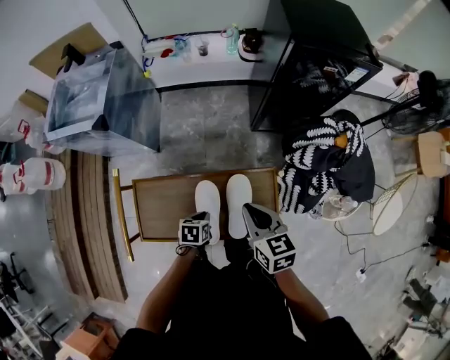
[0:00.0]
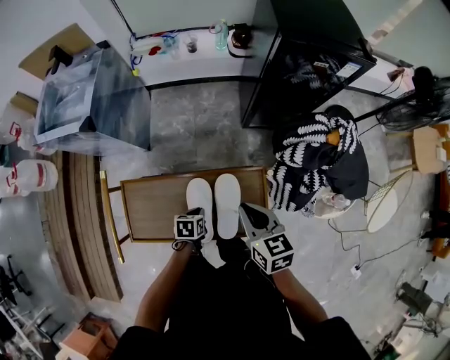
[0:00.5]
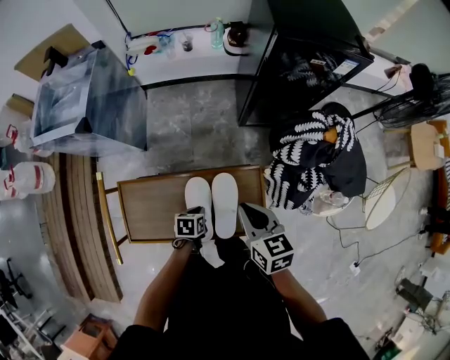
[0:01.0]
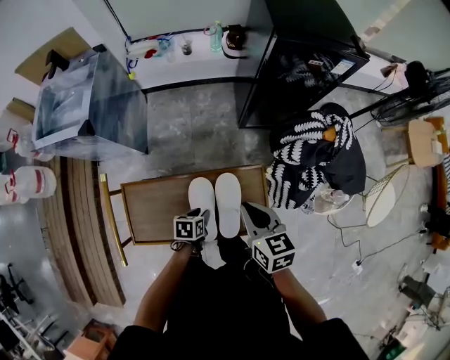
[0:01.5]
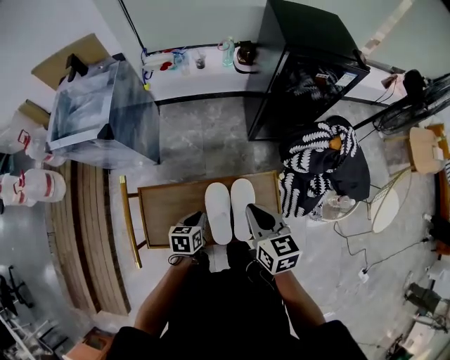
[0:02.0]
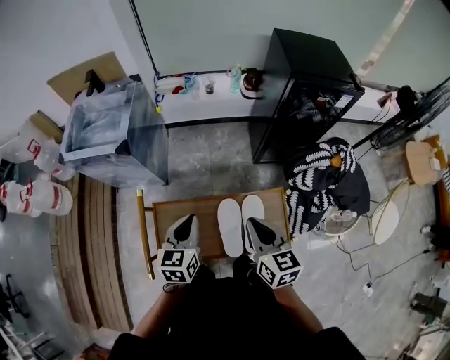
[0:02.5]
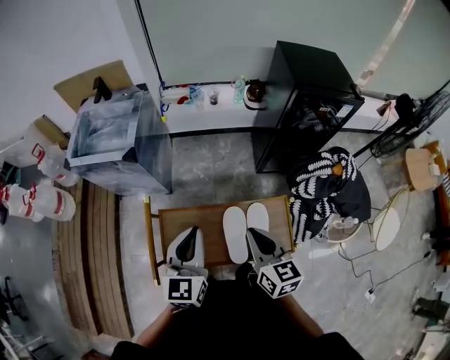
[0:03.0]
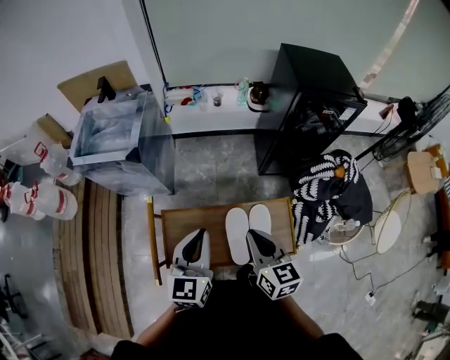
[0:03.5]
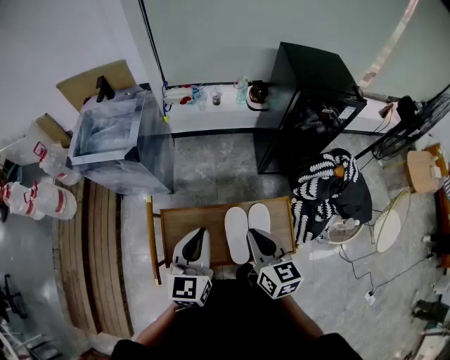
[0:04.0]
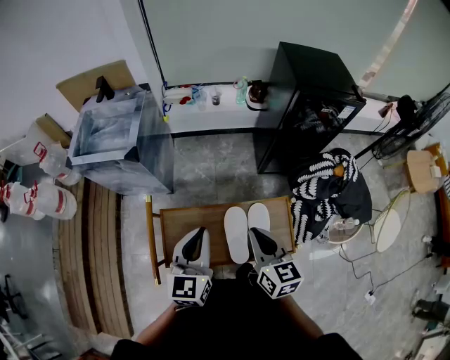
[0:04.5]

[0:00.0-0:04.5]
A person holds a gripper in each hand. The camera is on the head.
0:00.0 to 0:02.0: The left gripper is displaced upward by about 5 cm, and opens, then closes once more.
0:02.0 to 0:04.5: The left gripper heads upward, covering about 30 cm, and tilts its fingers about 40 degrees upward, while the right gripper travels to the left and upward by roughly 10 cm.

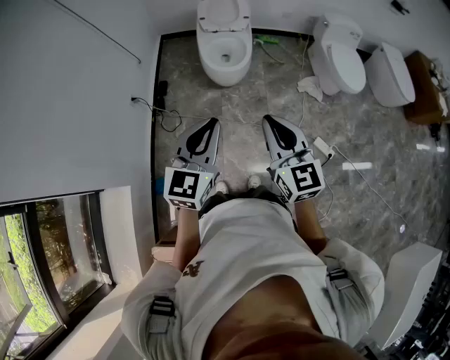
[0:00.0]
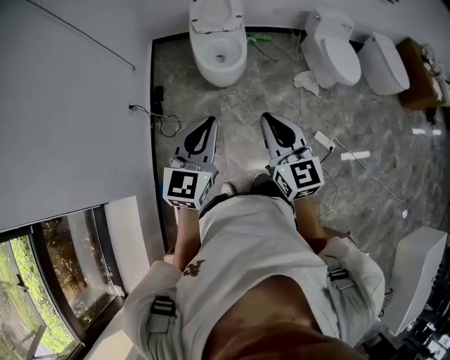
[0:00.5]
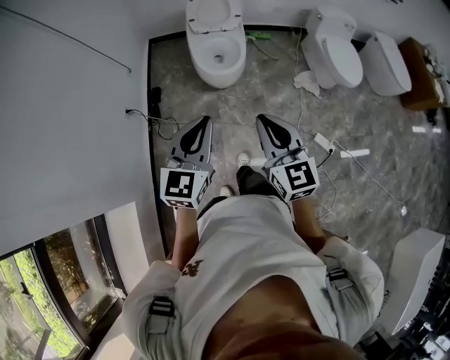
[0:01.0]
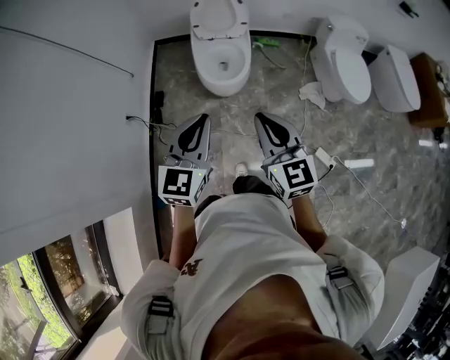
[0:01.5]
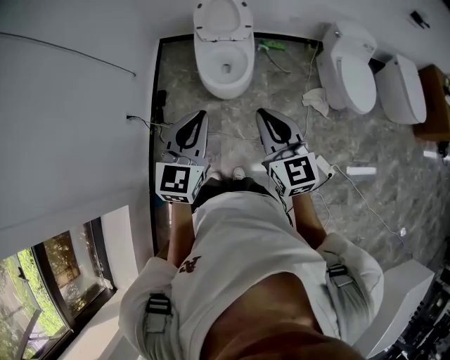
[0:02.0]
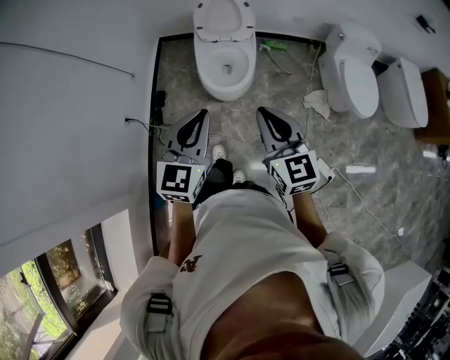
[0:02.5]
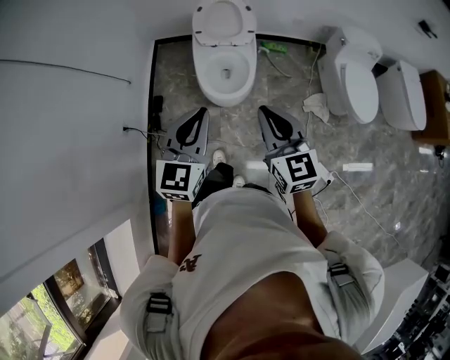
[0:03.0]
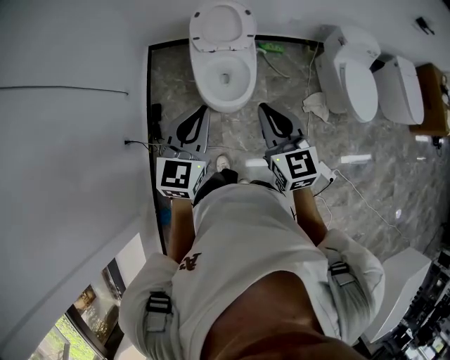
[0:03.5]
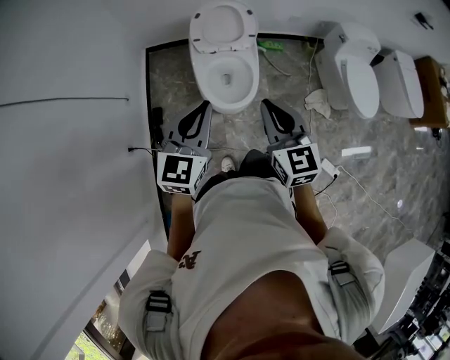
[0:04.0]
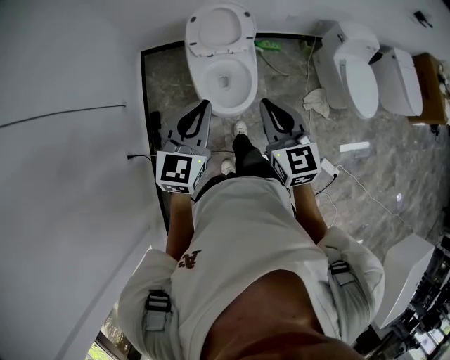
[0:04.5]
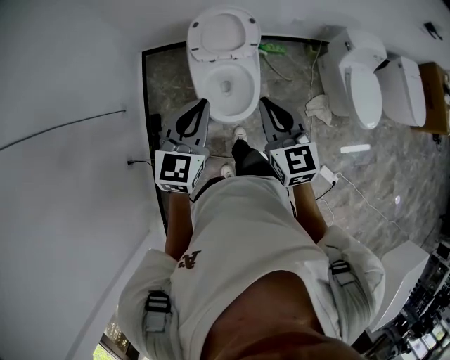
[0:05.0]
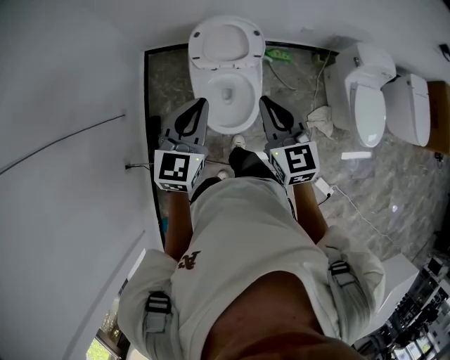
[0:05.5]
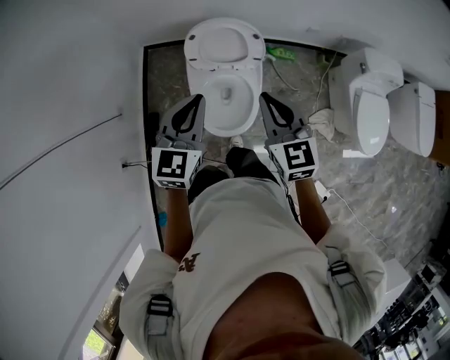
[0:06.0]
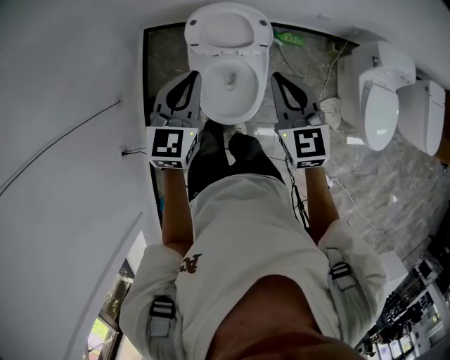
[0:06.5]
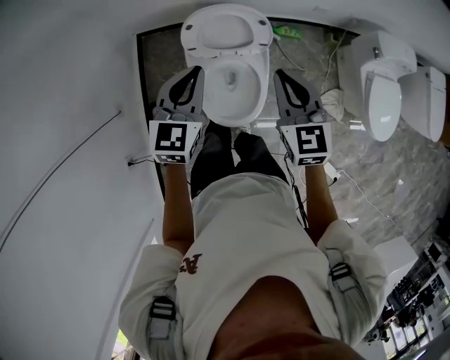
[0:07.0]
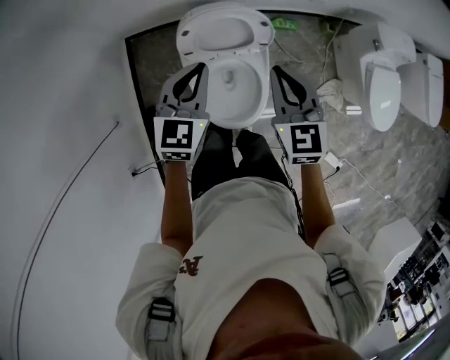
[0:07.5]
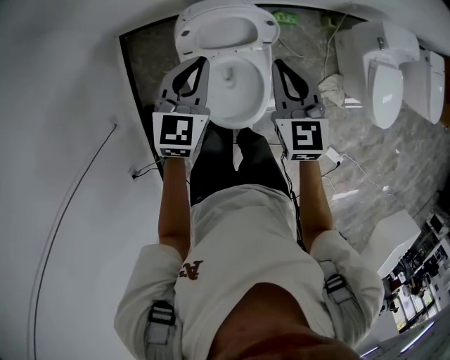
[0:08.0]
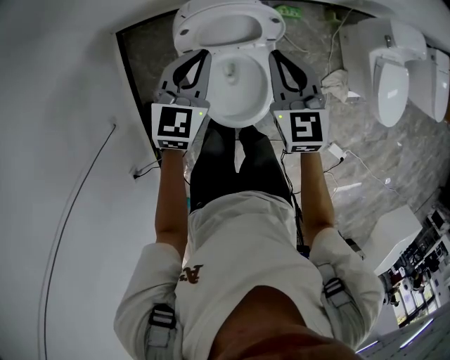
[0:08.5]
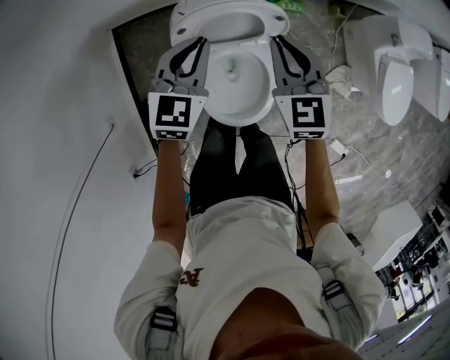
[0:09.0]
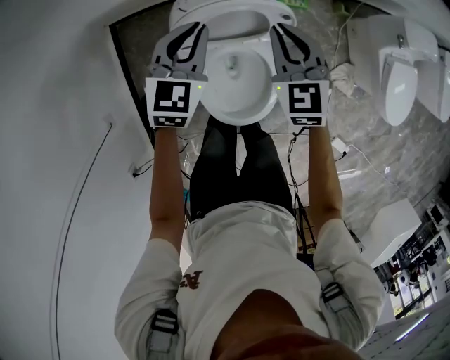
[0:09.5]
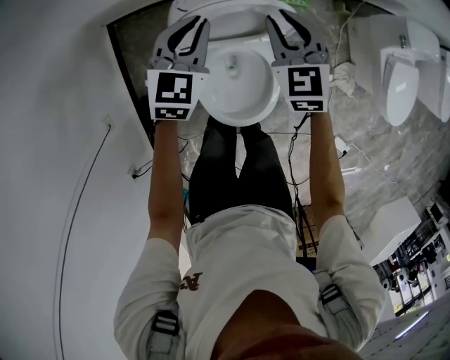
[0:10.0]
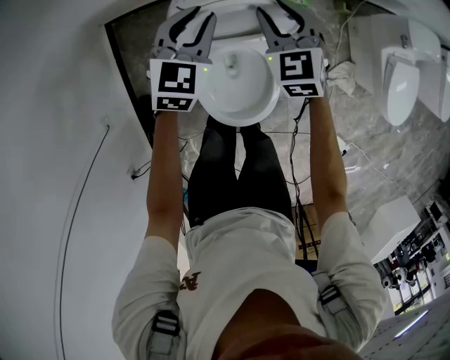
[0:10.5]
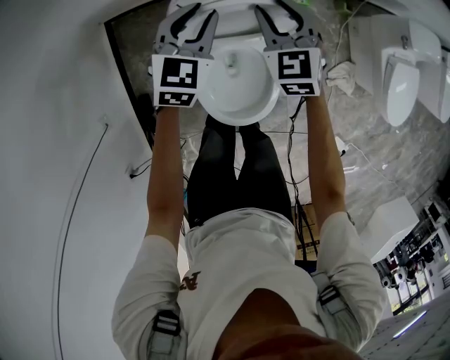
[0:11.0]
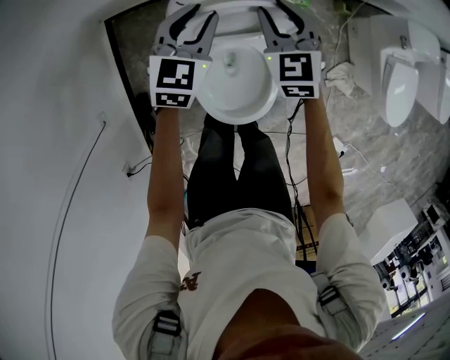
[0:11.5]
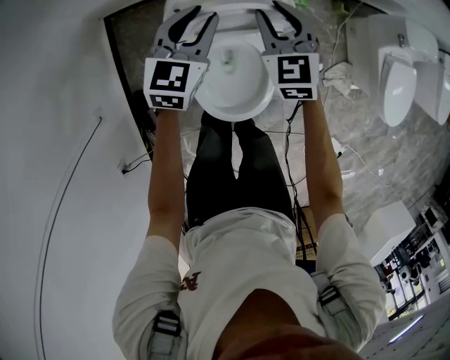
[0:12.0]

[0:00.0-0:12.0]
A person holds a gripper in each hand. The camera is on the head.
0:00.0 to 0:02.0: Both grippers move forward, approximately 25 cm.
0:02.0 to 0:04.0: Both grippers travel together forward and to the left, approximately 30 cm.
0:04.0 to 0:06.0: Both grippers move forward, about 30 cm.
0:06.0 to 0:08.0: The grippers both shift forward and downward by some 25 cm.
0:08.0 to 0:10.0: The two grippers go about 20 cm forward and downward.
0:10.0 to 0:12.0: The left gripper opens up.

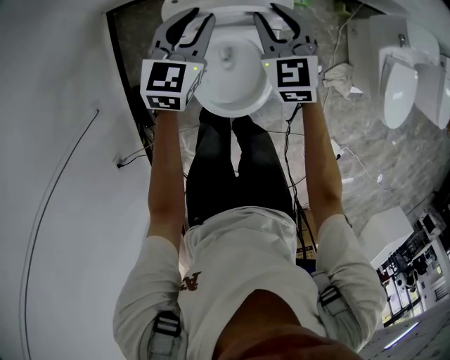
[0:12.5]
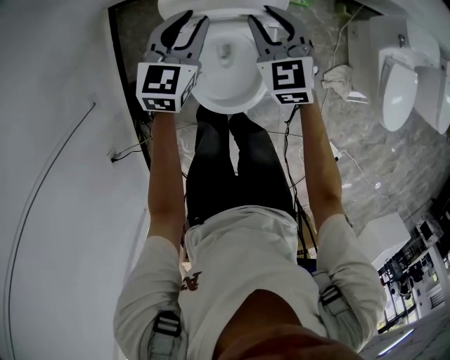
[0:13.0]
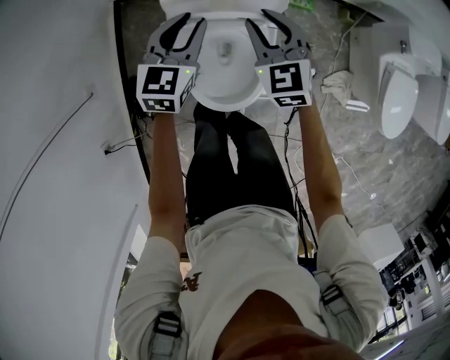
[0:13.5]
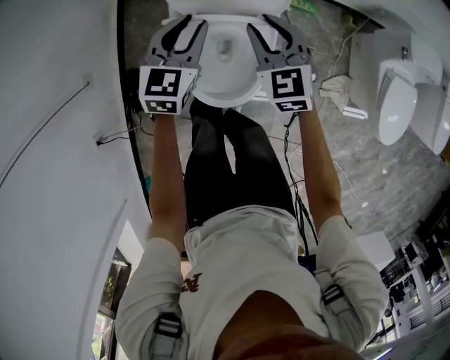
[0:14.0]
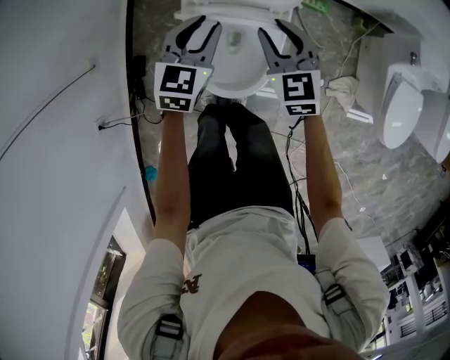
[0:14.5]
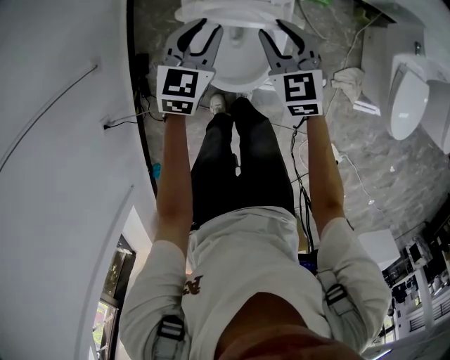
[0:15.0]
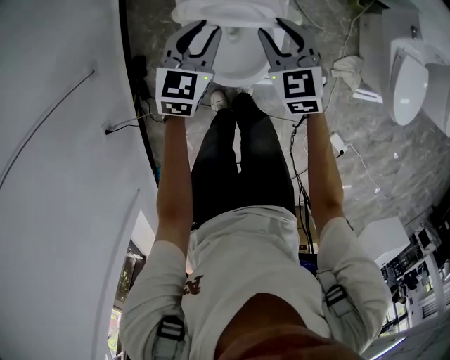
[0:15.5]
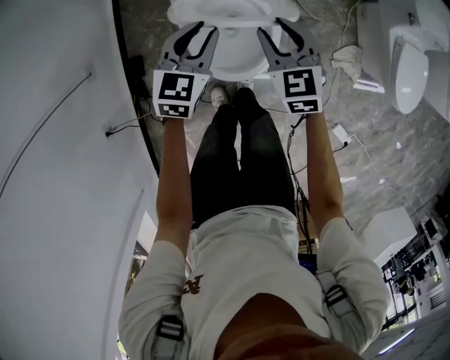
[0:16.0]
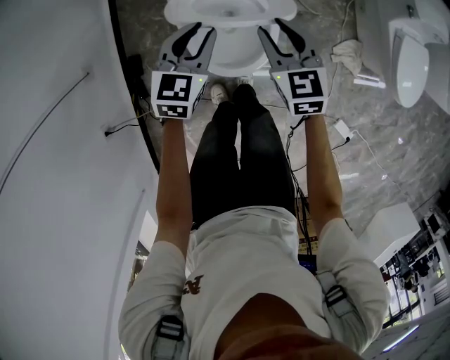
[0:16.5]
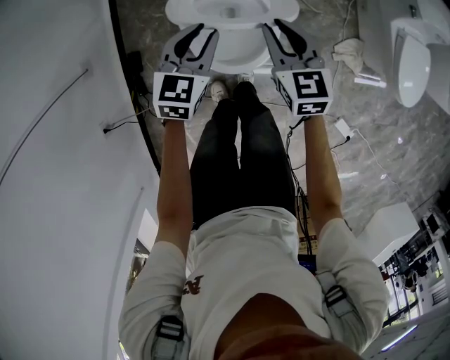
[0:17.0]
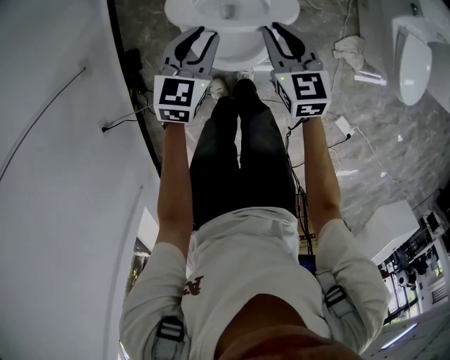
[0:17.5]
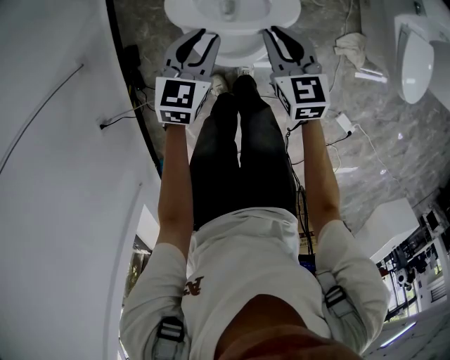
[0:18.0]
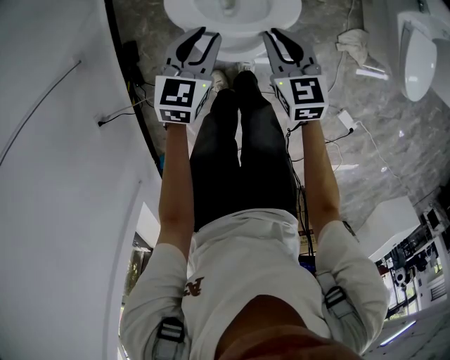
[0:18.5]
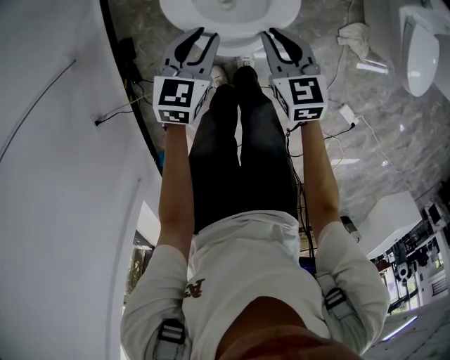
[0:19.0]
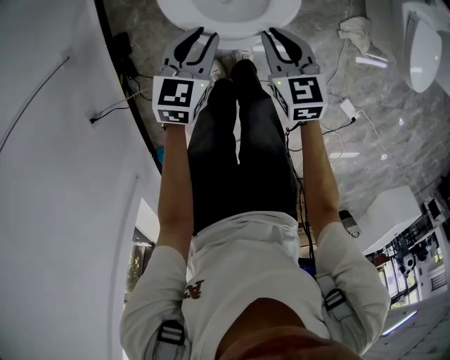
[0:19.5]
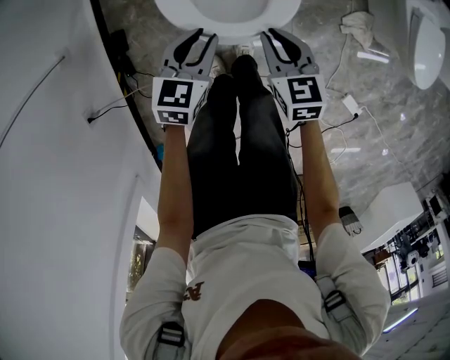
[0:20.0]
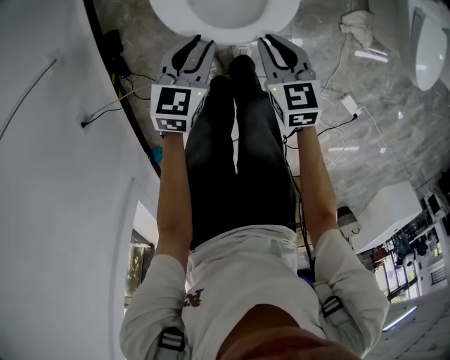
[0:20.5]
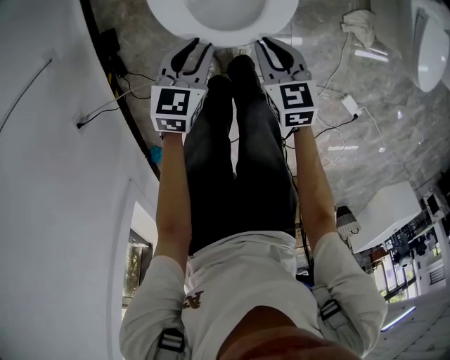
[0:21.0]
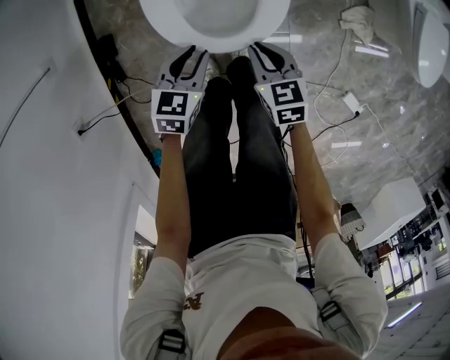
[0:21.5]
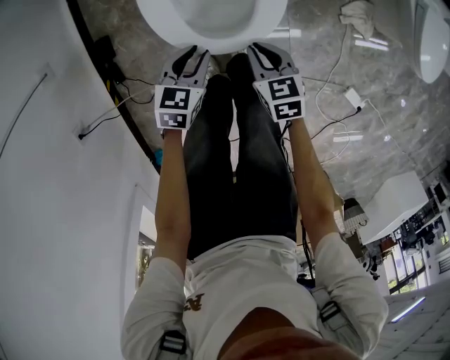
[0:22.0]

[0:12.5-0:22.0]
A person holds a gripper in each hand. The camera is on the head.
0:12.5 to 0:14.5: Both grippers move backward, about 15 cm.
0:14.5 to 0:16.5: Both grippers travel together backward, approximately 10 cm.
0:16.5 to 0:18.0: The right gripper moves about 5 cm, and closes; the left gripper goes about 5 cm backward.
0:18.0 to 0:20.0: Both grippers move downward and backward, about 10 cm.
0:20.0 to 0:22.0: The grippers both shift downward by roughly 15 cm.

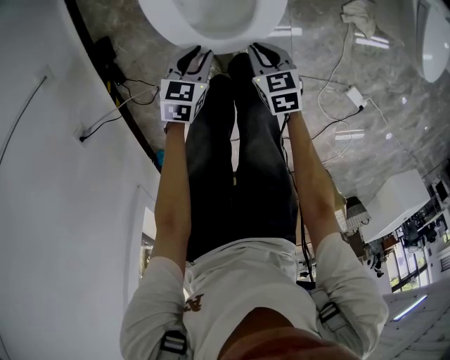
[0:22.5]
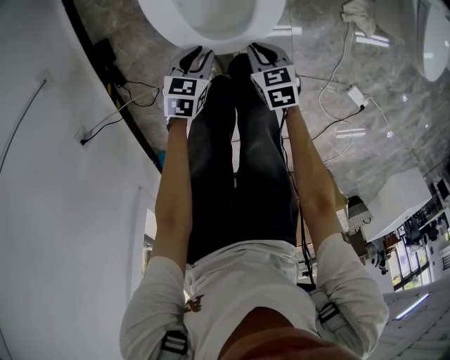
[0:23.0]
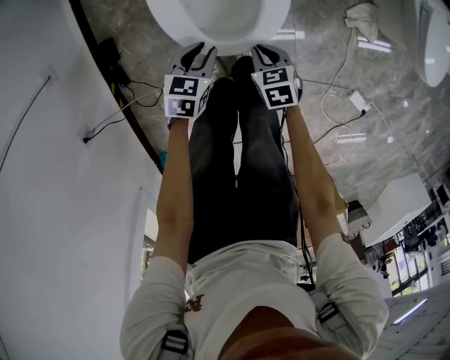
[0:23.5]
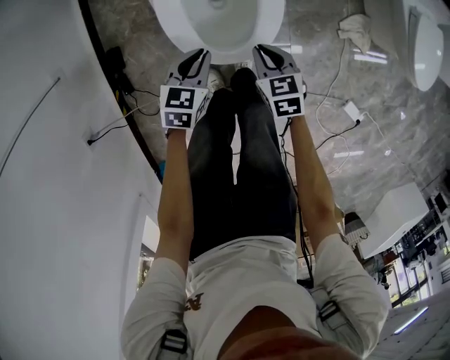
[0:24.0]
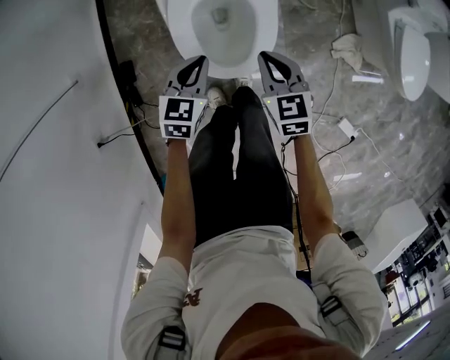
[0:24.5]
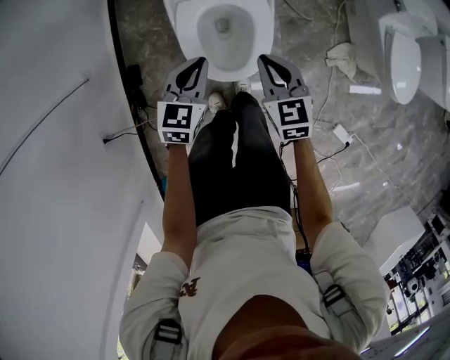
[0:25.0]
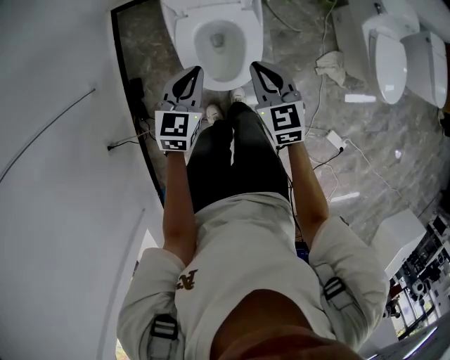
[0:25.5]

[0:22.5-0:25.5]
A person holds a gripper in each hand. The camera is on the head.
0:22.5 to 0:24.0: The grippers both shift upward by about 5 cm.
0:24.0 to 0:25.5: Both grippers travel together upward, roughly 30 cm. The right gripper turns by some 20 degrees.
